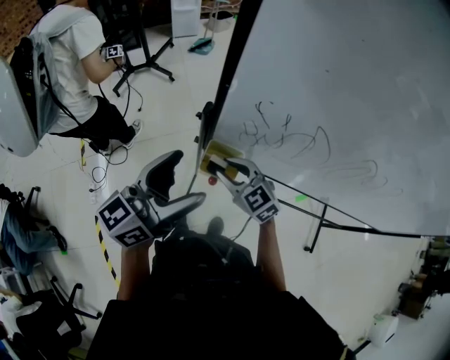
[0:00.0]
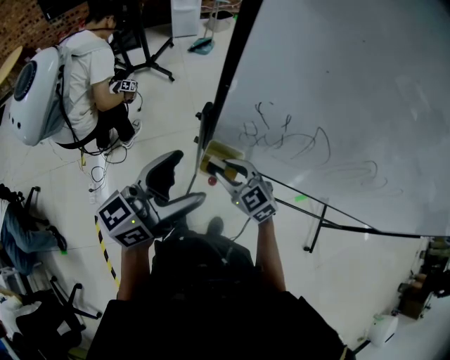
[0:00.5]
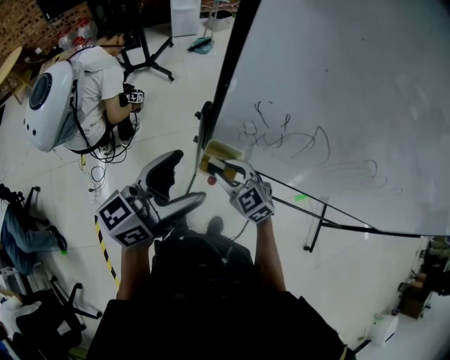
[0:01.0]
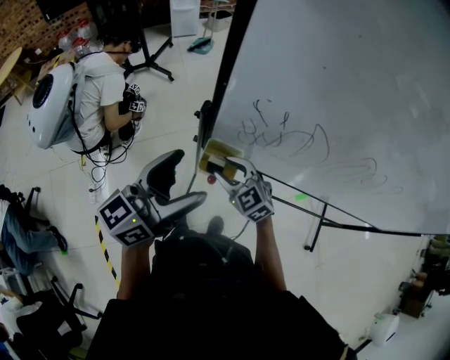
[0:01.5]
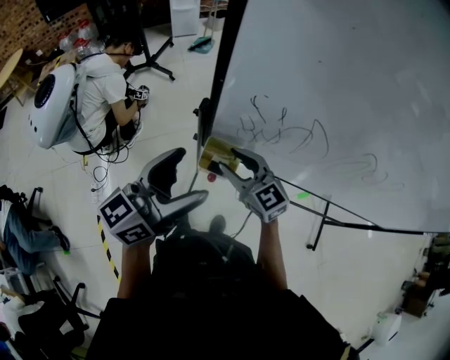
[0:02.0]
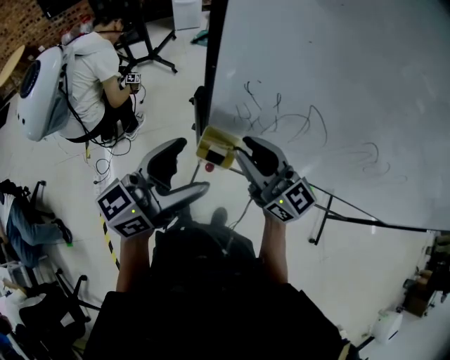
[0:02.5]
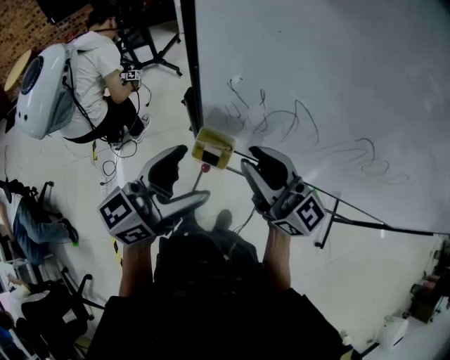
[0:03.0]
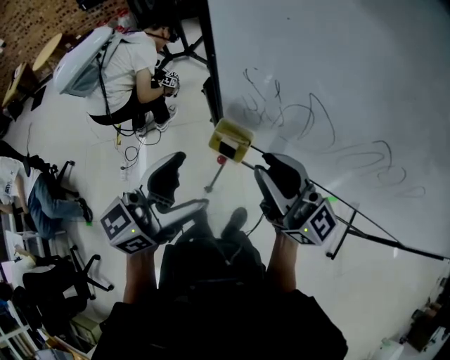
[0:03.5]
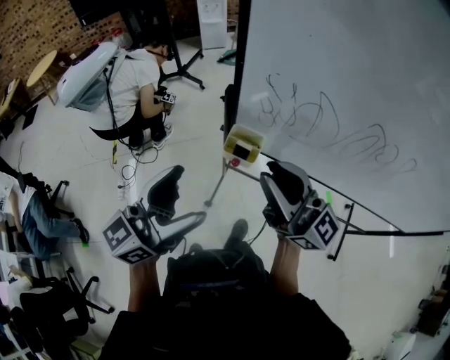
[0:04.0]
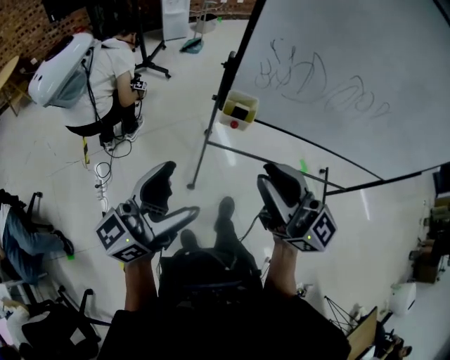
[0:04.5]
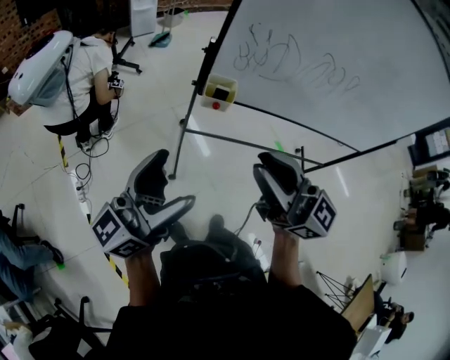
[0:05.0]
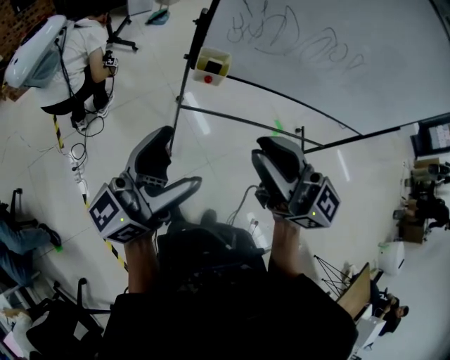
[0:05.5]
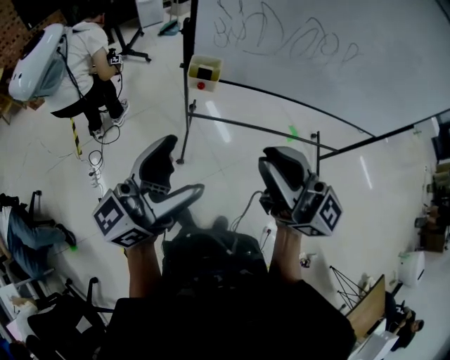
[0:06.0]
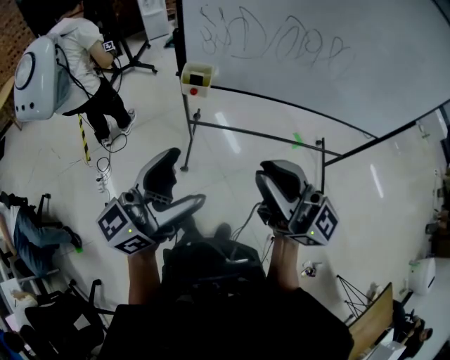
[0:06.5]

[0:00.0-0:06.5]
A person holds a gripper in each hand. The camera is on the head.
0:00.0 to 0:02.0: The right gripper shifts by some 5 cm.
0:02.0 to 0:04.5: The left gripper travels backward and to the left by about 25 cm. The right gripper heads backward and upward, covering approximately 35 cm, points its fingers roughly 30 degrees further upward, and closes up.
0:04.5 to 0:06.5: The two grippers go roughly 20 cm to the right and backward.

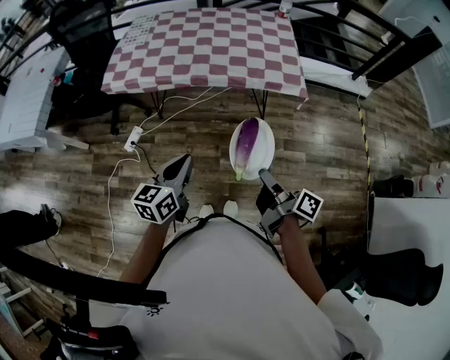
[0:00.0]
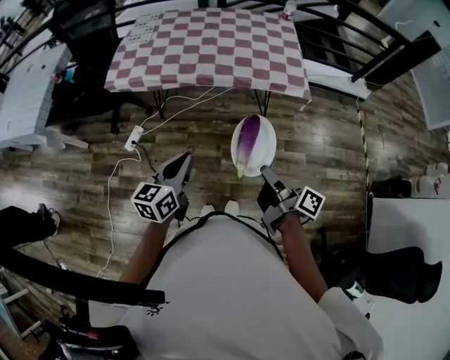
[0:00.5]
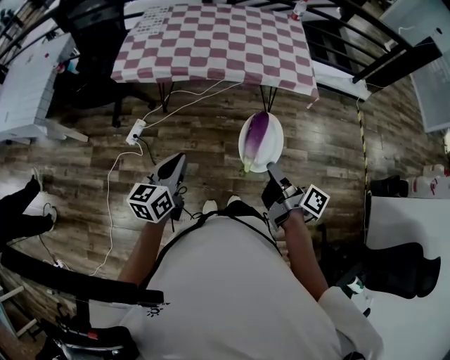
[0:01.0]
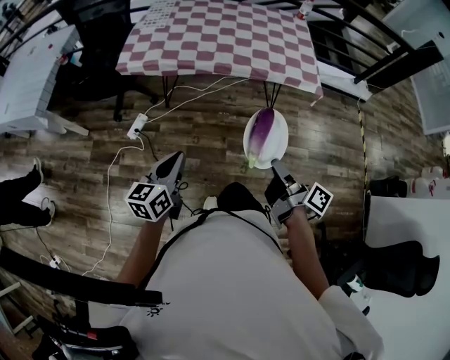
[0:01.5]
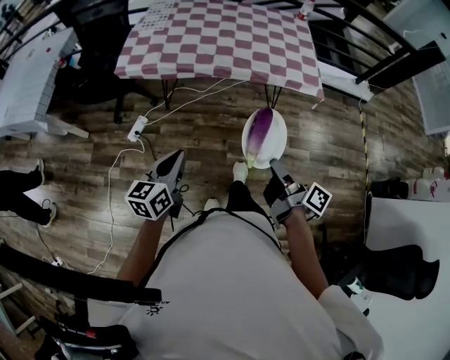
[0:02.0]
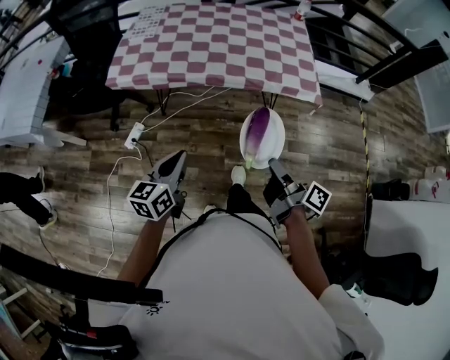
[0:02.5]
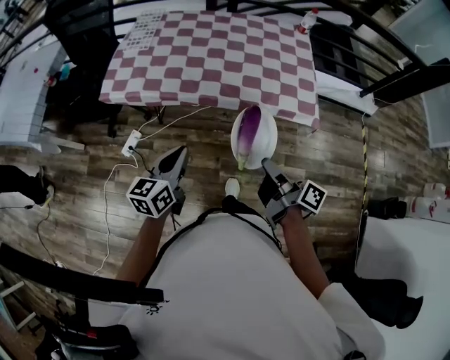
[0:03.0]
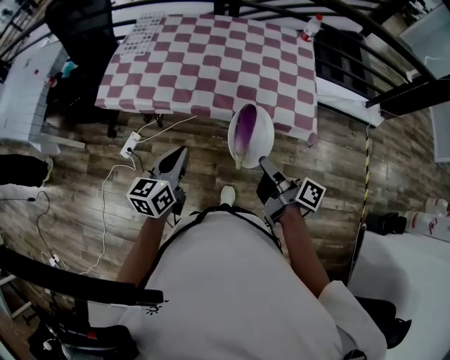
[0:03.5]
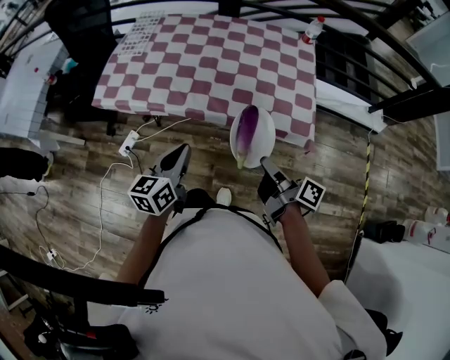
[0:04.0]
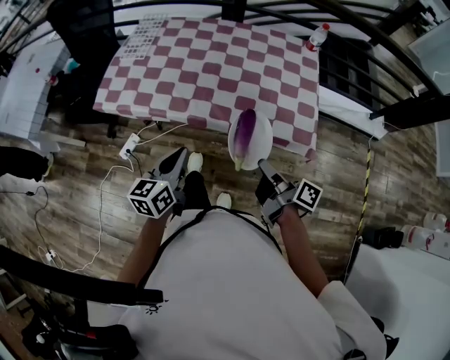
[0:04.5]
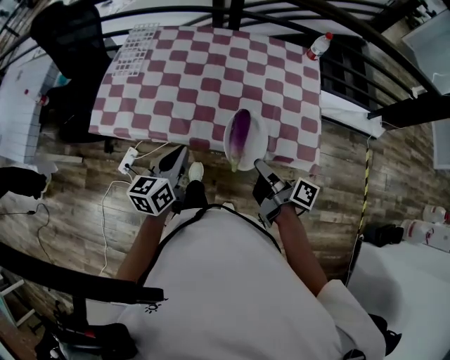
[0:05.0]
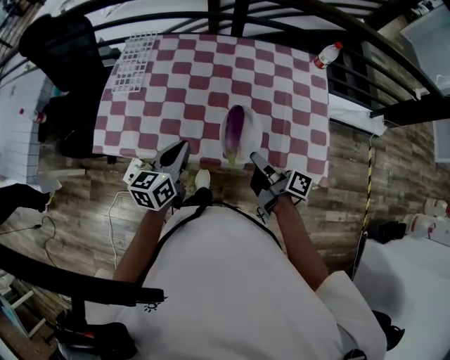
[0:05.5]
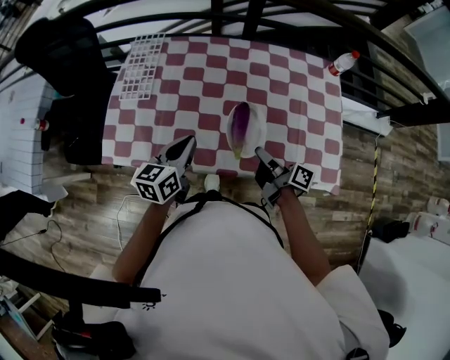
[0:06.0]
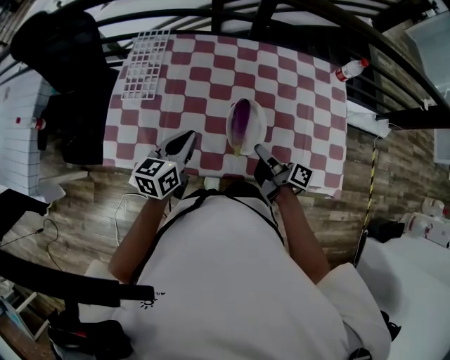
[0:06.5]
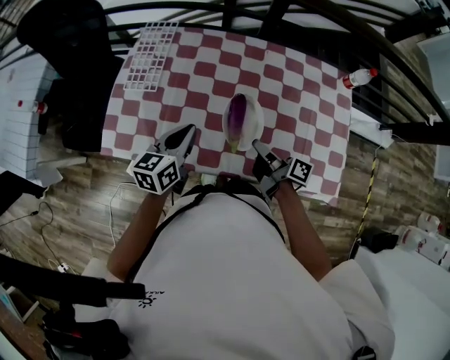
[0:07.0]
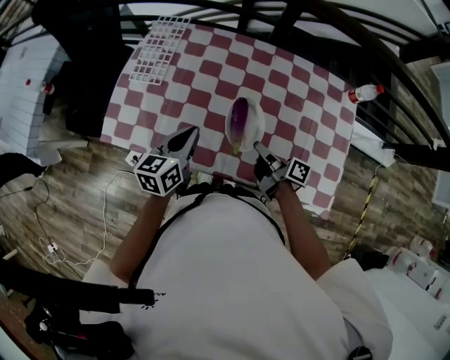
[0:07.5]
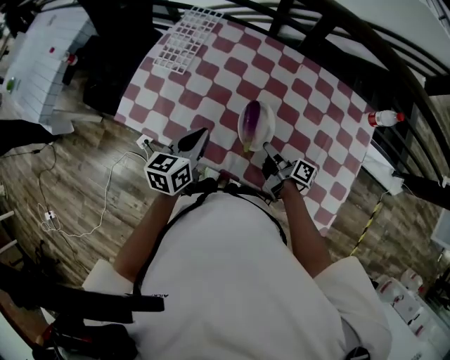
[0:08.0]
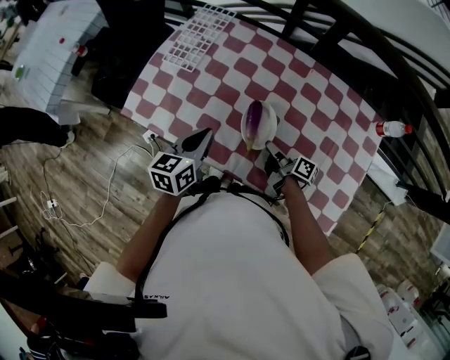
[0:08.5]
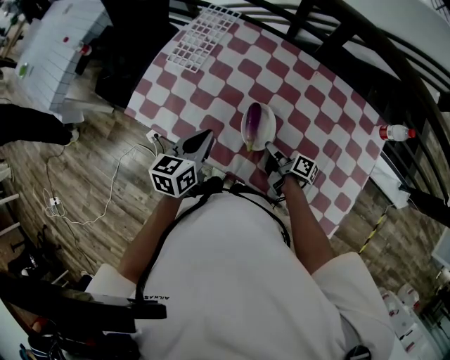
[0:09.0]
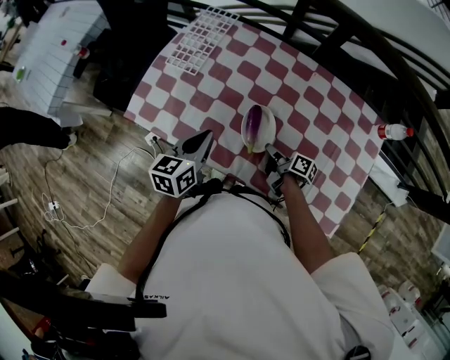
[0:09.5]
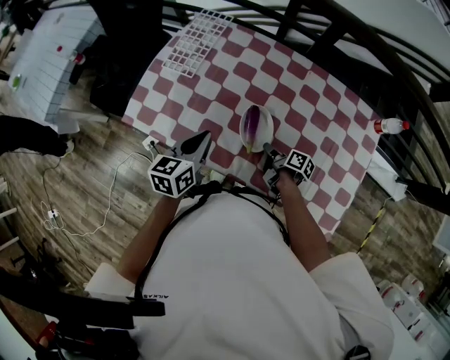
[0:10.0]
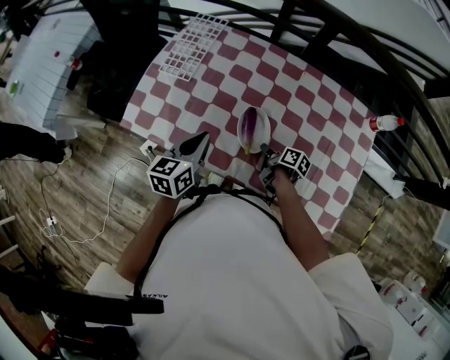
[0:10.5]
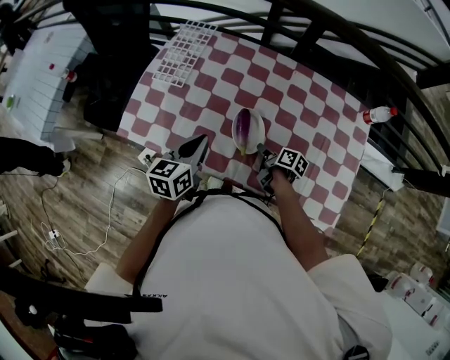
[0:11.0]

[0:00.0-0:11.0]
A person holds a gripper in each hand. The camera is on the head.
0:00.0 to 0:02.0: The left gripper changes place by roughly 15 cm.
0:02.0 to 0:03.5: The left gripper changes place by approximately 30 cm.
0:03.5 to 0:05.5: The left gripper changes place by about 25 cm.
0:05.5 to 0:07.5: The left gripper shifts by about 10 cm.

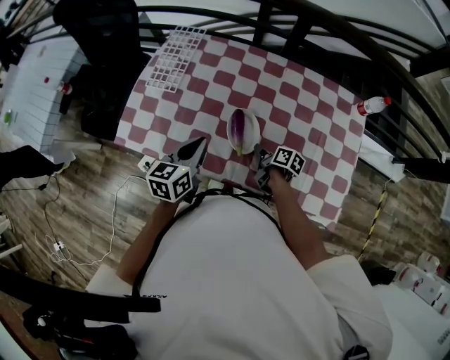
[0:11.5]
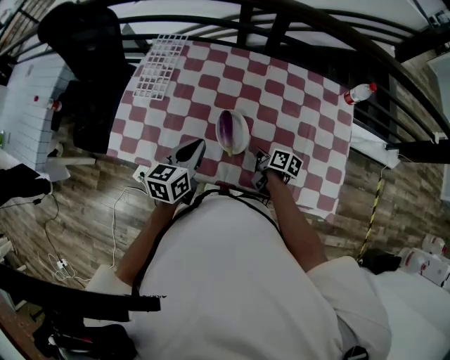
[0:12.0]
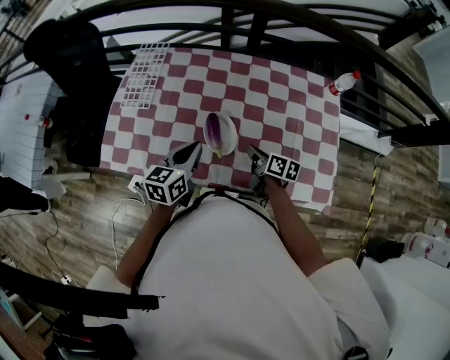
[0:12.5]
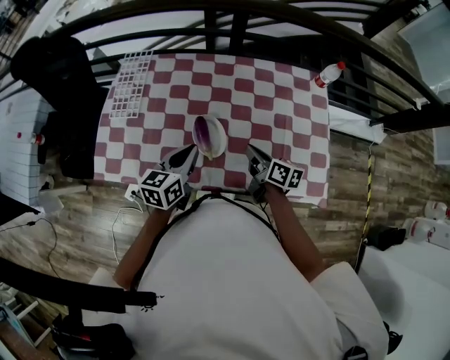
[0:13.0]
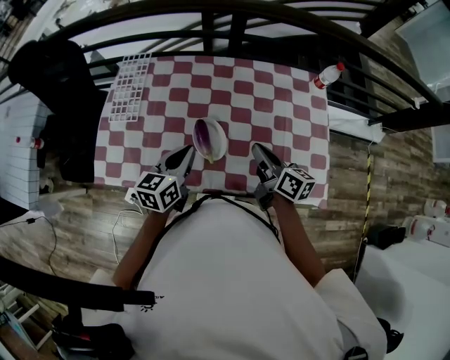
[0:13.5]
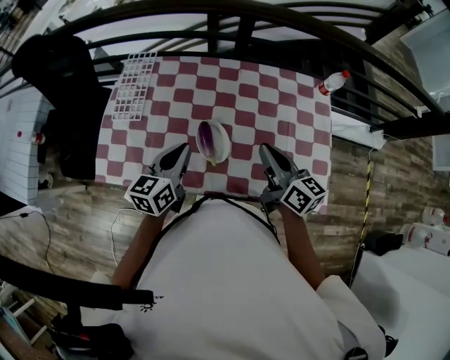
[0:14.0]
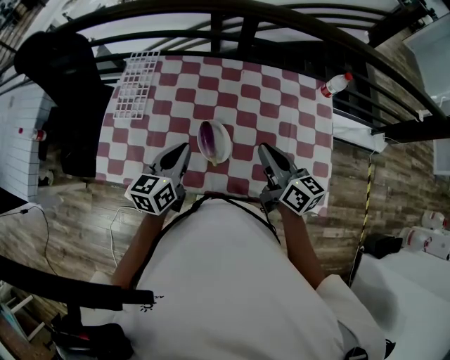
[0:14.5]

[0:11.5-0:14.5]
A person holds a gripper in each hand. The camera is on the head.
0:11.5 to 0:13.0: The left gripper ends up about 10 cm from where it was.
0:13.0 to 0:14.5: The left gripper ends up about 5 cm from where it was.

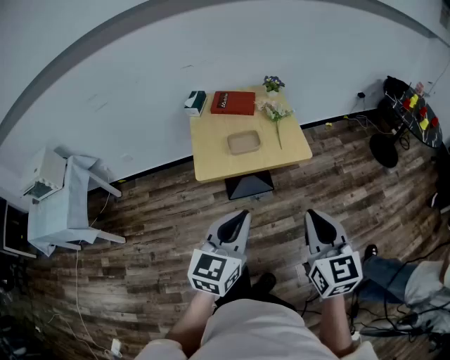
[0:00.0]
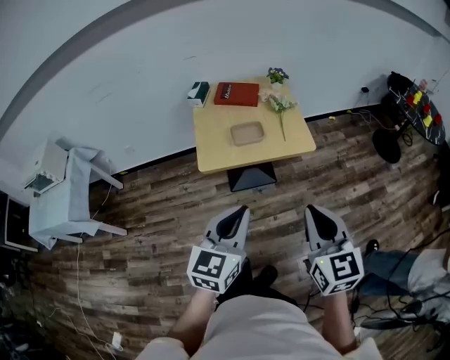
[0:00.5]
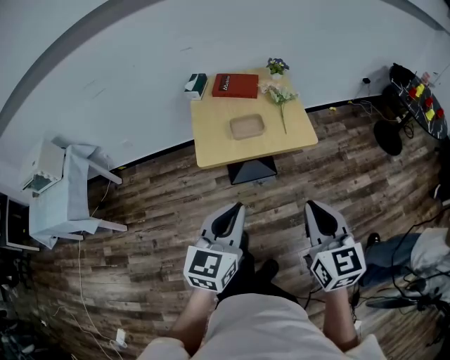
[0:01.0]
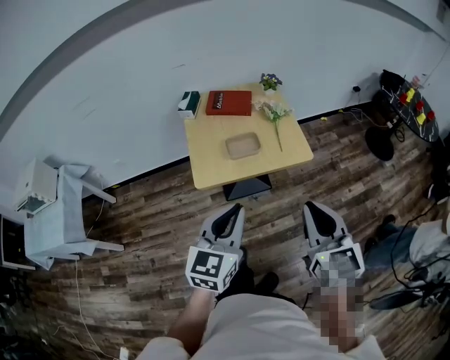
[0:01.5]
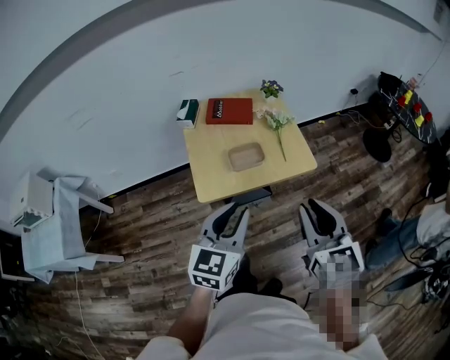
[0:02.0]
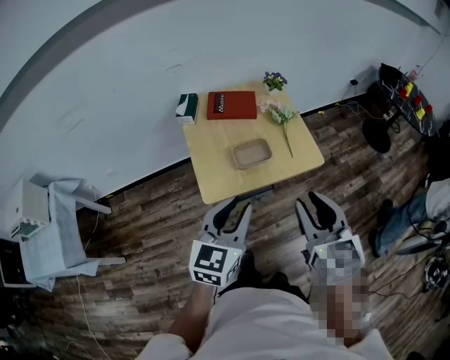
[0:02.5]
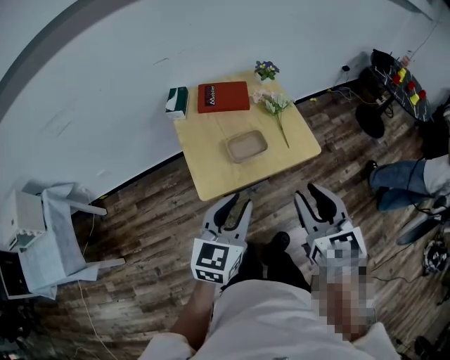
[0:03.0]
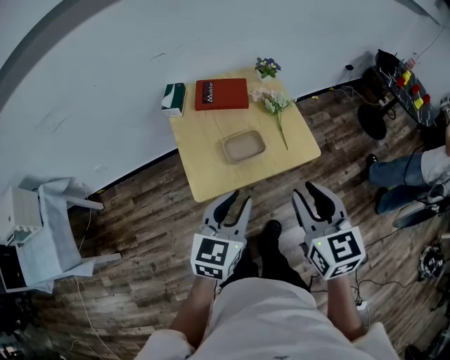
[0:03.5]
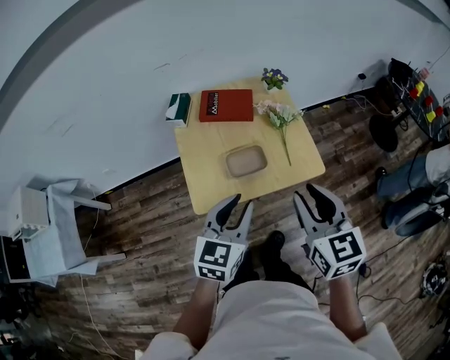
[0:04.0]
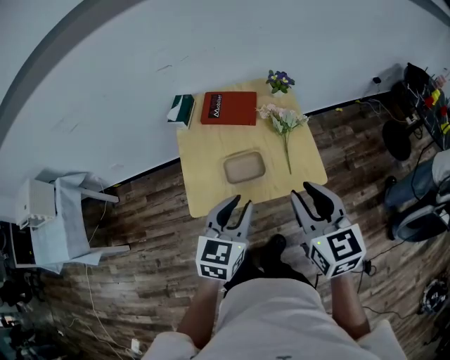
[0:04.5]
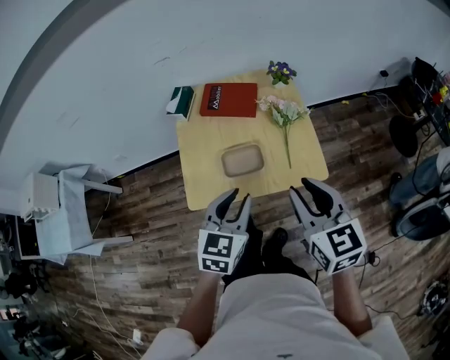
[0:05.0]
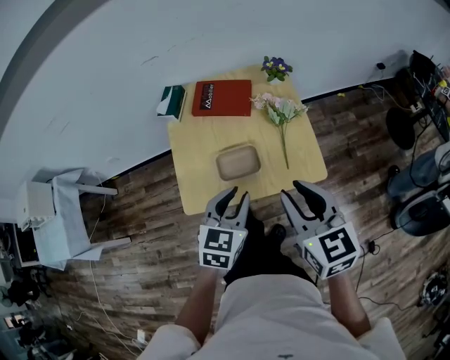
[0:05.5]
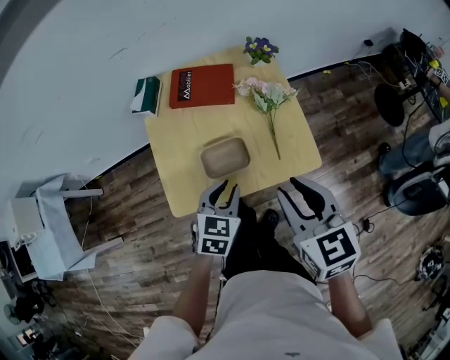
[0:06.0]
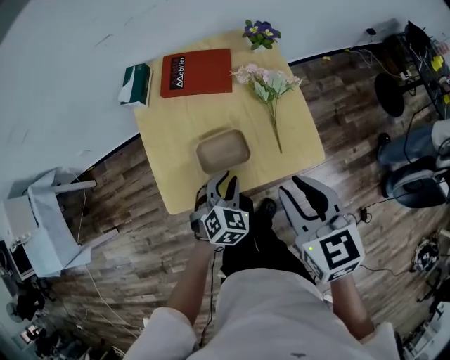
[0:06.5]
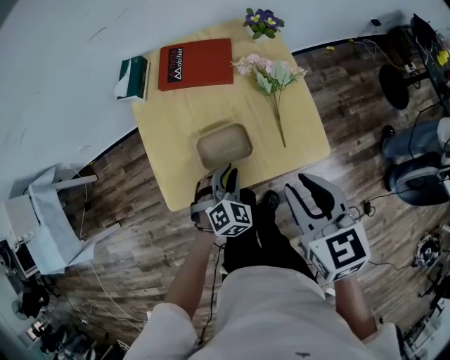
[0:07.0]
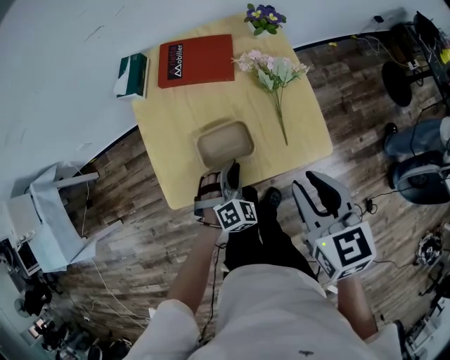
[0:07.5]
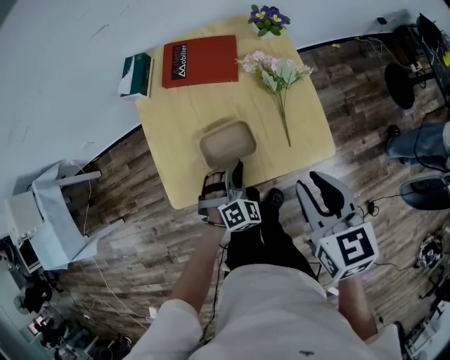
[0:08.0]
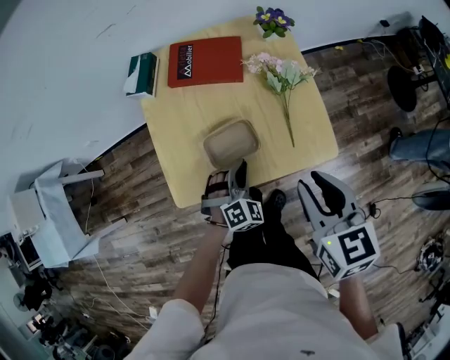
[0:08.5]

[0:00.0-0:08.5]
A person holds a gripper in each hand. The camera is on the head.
0:00.0 to 0:02.0: The two grippers go roughly 15 cm forward and to the left.
0:02.0 to 0:04.0: The right gripper moves forward, about 15 cm. Meanwhile the left gripper heads forward and downward, covering some 15 cm.
0:04.0 to 0:06.5: The left gripper is displaced downward and forward by about 25 cm, and rotates about 40 degrees, while the right gripper heads forward and downward, covering some 15 cm.
0:06.5 to 0:08.5: The left gripper rotates some 20 degrees.
